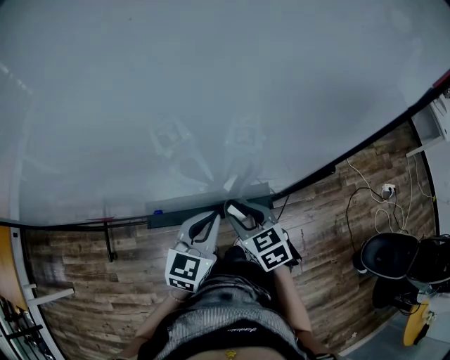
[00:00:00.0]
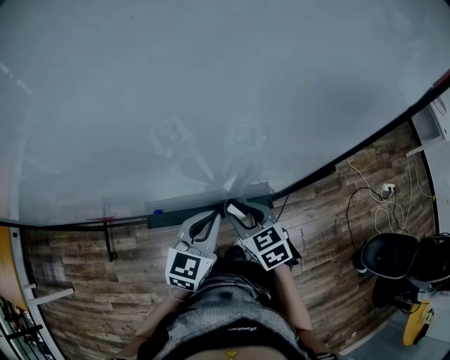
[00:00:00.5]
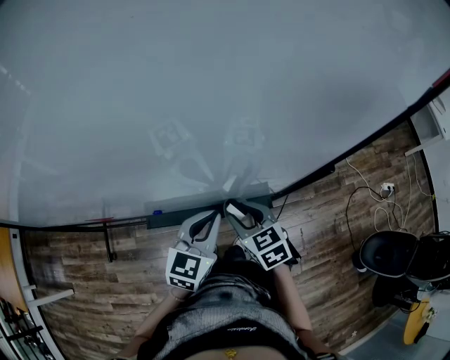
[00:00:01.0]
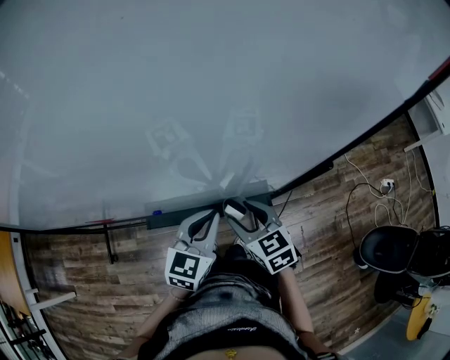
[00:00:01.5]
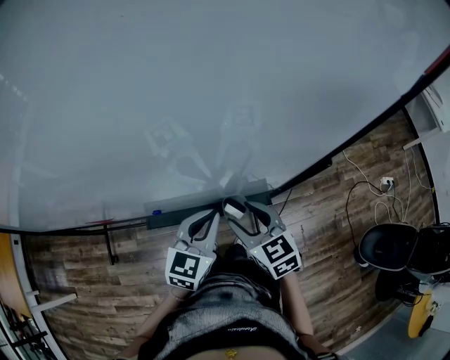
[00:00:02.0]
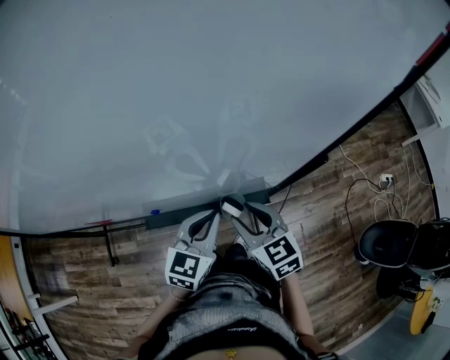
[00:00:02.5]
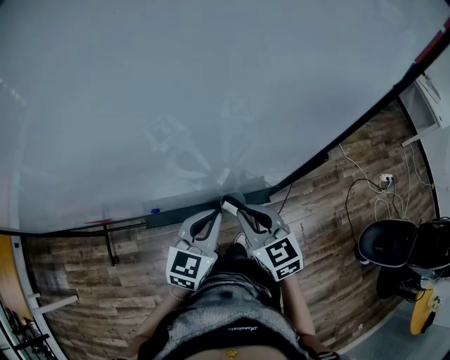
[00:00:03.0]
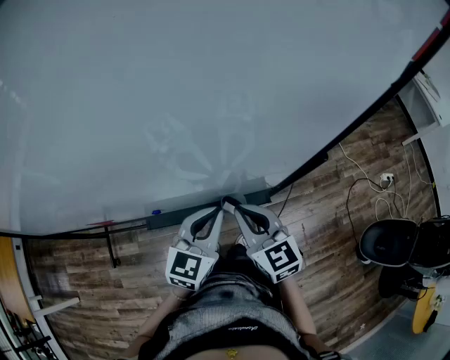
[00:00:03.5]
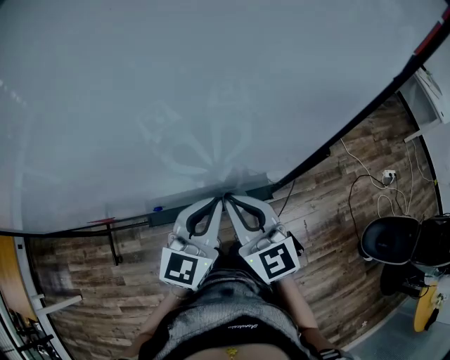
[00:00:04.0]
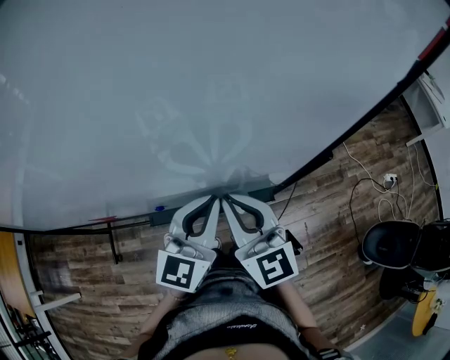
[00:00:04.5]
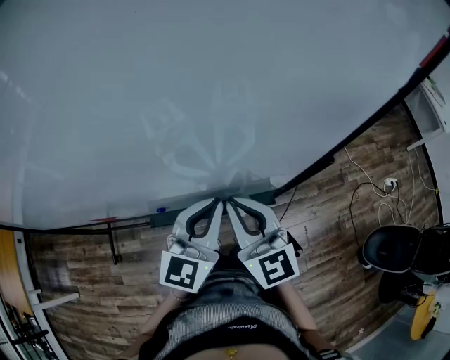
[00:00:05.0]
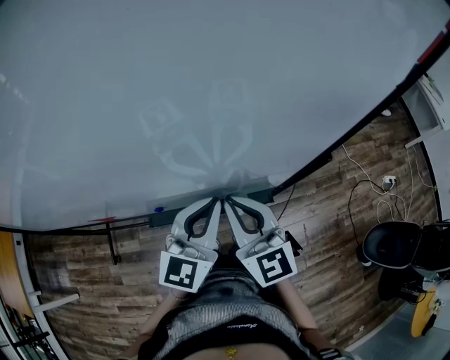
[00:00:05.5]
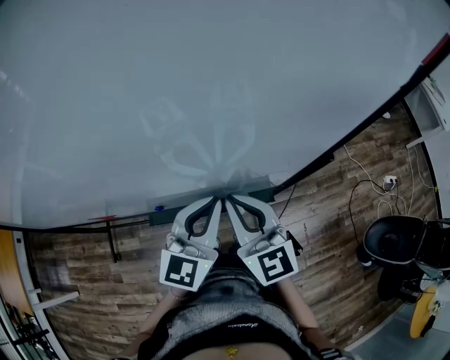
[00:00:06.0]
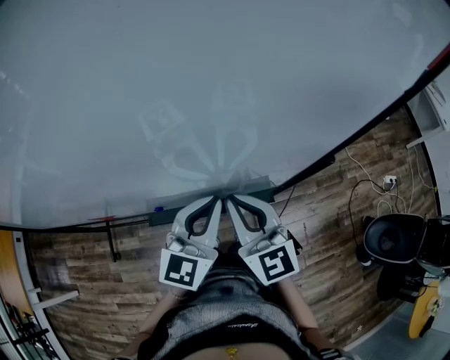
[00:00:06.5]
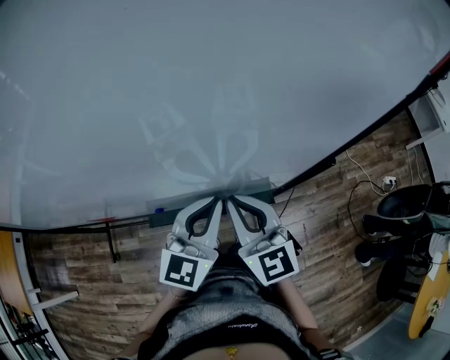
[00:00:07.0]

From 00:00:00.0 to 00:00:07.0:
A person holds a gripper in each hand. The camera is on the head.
From 00:00:00.0 to 00:00:02.0: The grippers stay close to where they were, moving slightly.
From 00:00:02.0 to 00:00:03.5: The right gripper closes up.
From 00:00:03.5 to 00:00:05.0: Both grippers travel together upward, roughly 5 cm.
From 00:00:05.0 to 00:00:07.0: The grippers move only a little.

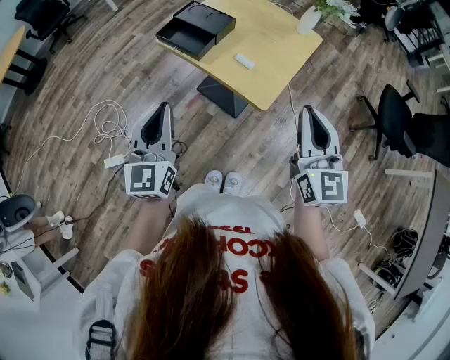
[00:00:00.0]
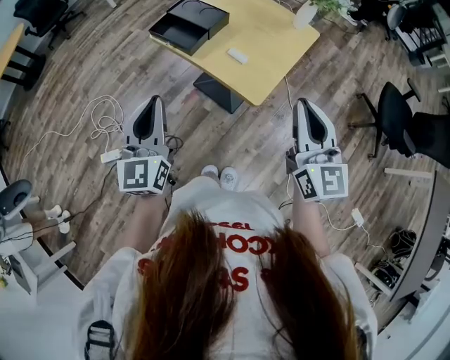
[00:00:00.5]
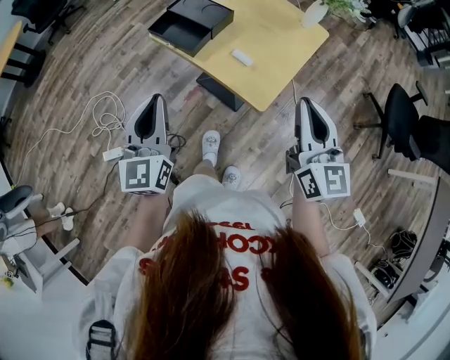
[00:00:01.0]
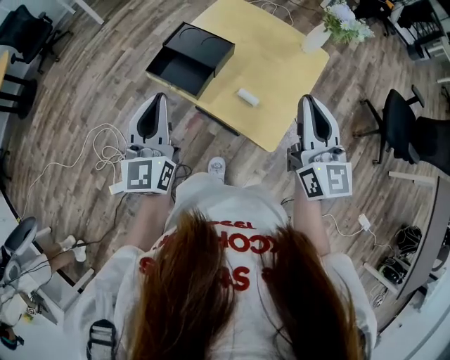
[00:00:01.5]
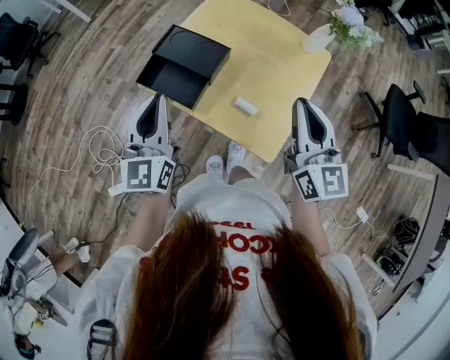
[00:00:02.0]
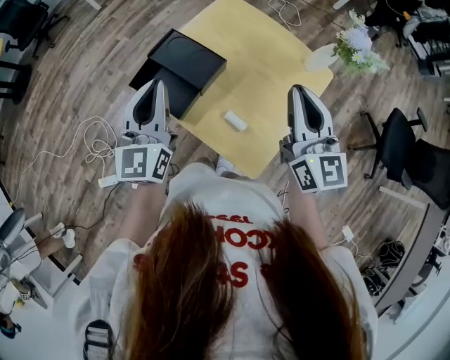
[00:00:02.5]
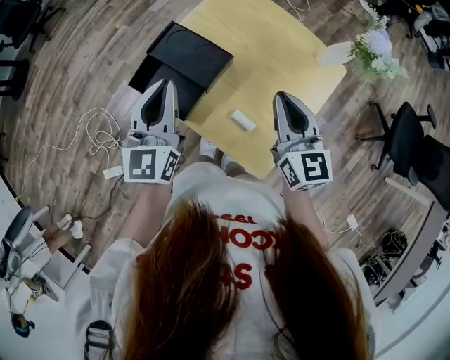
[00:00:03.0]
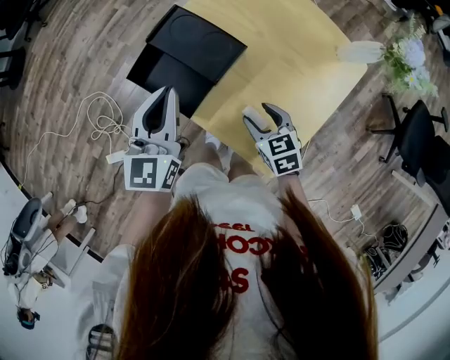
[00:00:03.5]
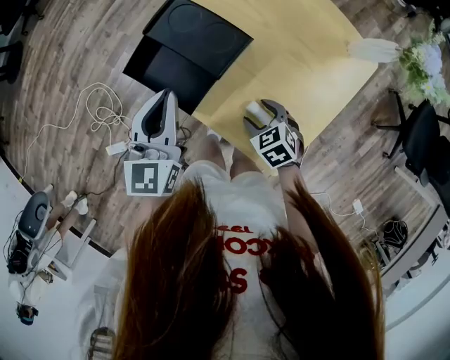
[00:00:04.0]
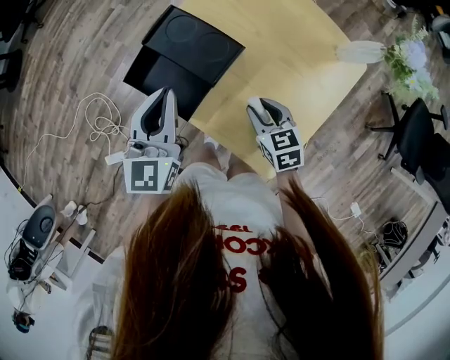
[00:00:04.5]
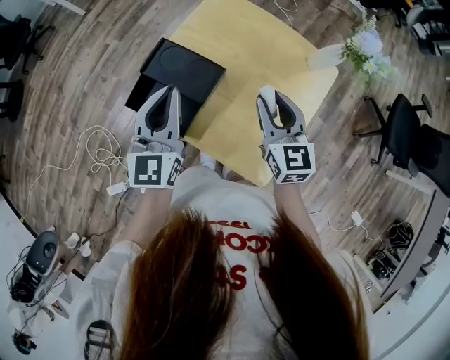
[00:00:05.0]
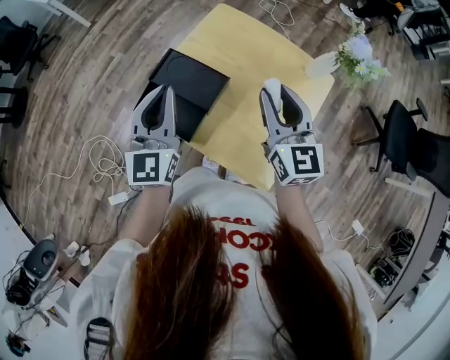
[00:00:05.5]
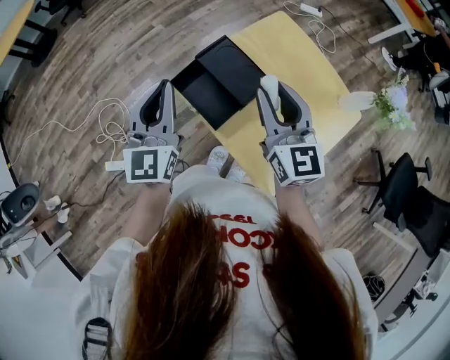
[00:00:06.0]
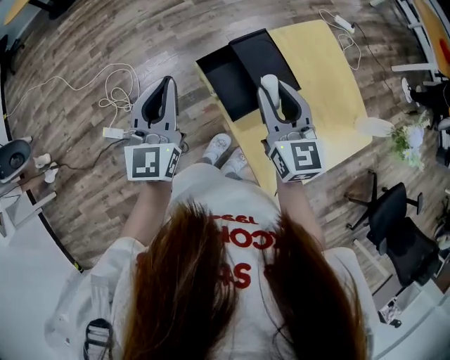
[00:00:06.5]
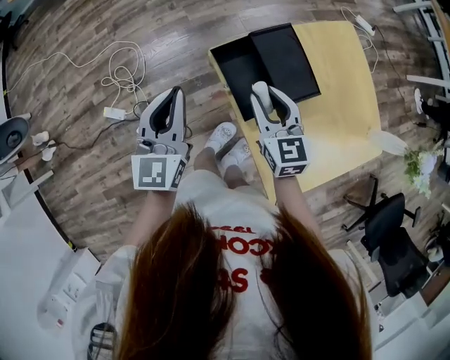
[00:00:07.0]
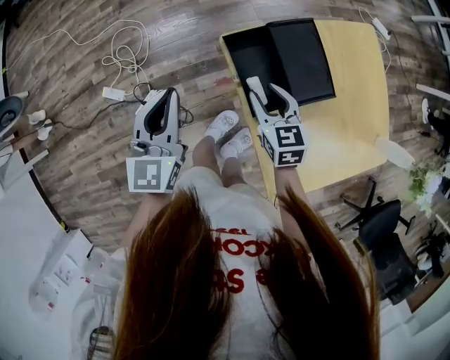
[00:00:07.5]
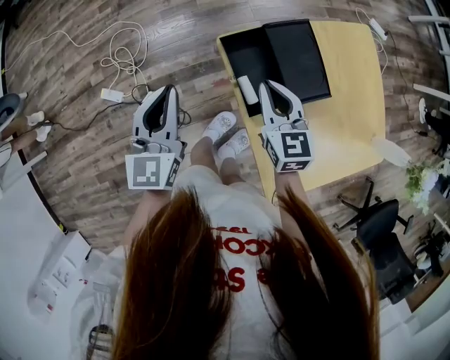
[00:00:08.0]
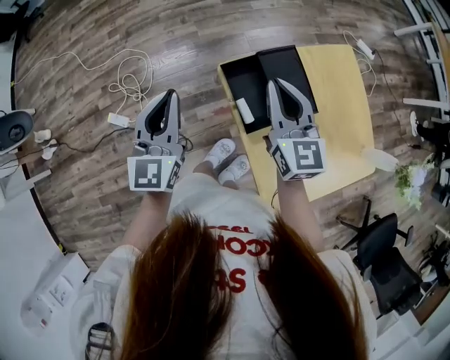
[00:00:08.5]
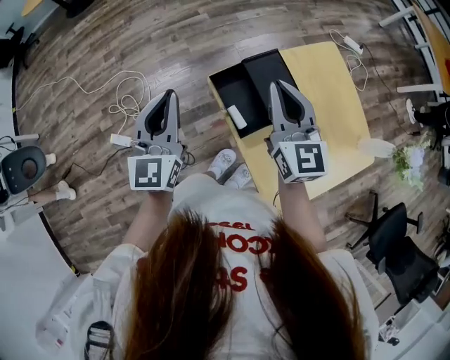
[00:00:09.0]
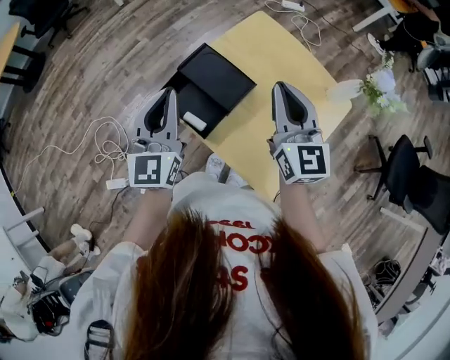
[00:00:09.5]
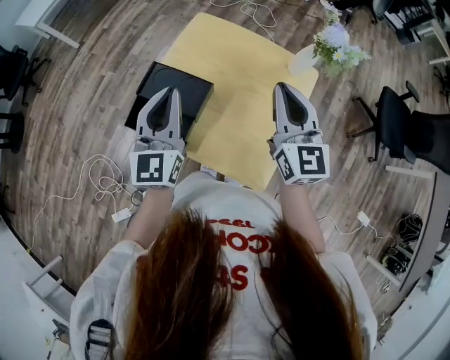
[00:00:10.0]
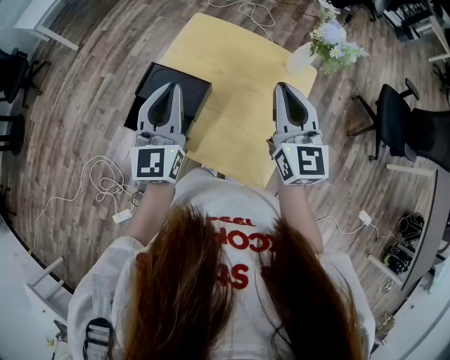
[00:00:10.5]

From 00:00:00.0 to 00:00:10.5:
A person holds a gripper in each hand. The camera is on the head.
From 00:00:00.0 to 00:00:02.0: Both grippers travel together forward, roughly 25 cm.
From 00:00:02.0 to 00:00:04.0: The right gripper moves downward, approximately 35 cm, tilts its fingers about 60 degrees downward, and opens, while the left gripper moves downward and forward, approximately 10 cm.
From 00:00:04.0 to 00:00:06.5: The right gripper heads upward, covering approximately 25 cm, points its fingers about 50 degrees further upward, and closes up. Meanwhile the left gripper moves some 15 cm, and changes its angle by some 30 degrees.
From 00:00:06.5 to 00:00:08.5: The left gripper moves to the left, roughly 5 cm, and reaches about 10 cm downward, then returns, while the right gripper is displaced forward by roughly 5 cm, moves roughly 20 cm downward and comes back, and closes its fingers.
From 00:00:08.5 to 00:00:10.5: The left gripper shifts by approximately 30 cm, and swivels some 40 degrees; the right gripper ends up approximately 35 cm from where it was, and rotates roughly 50 degrees.

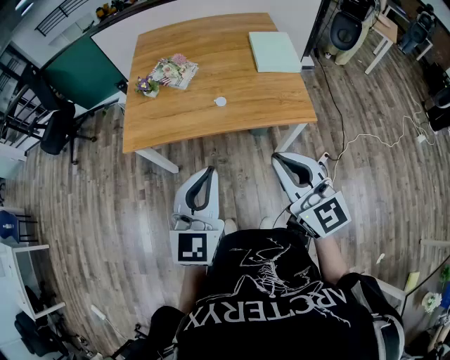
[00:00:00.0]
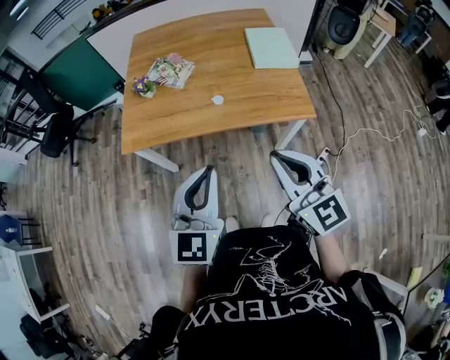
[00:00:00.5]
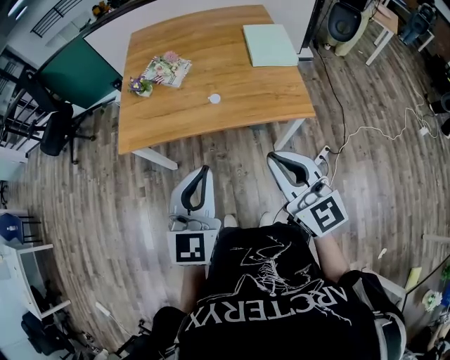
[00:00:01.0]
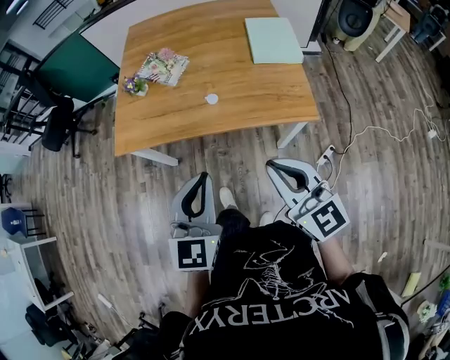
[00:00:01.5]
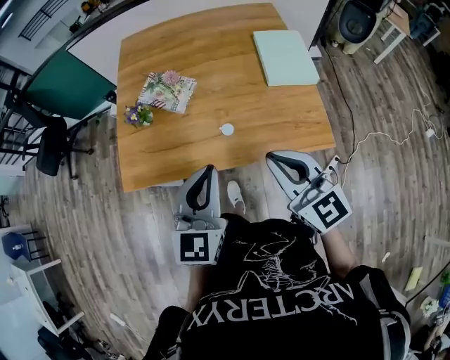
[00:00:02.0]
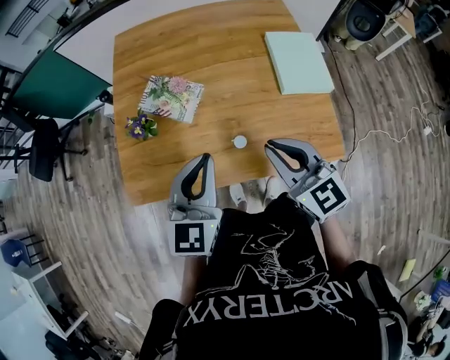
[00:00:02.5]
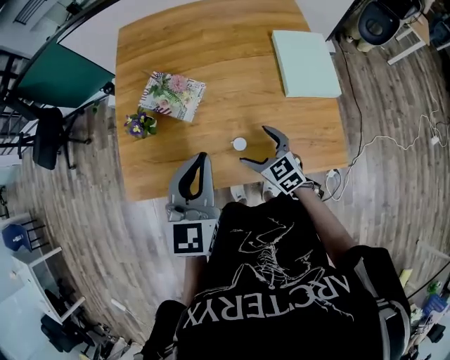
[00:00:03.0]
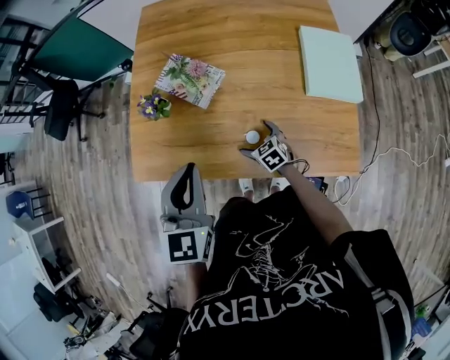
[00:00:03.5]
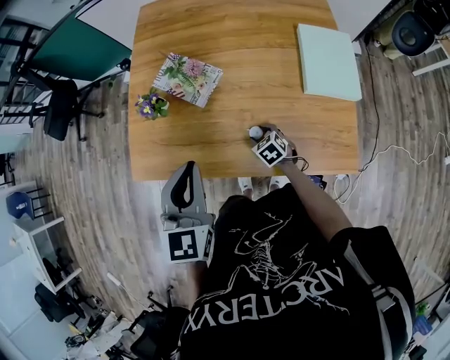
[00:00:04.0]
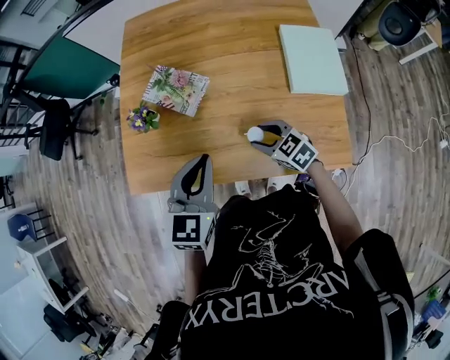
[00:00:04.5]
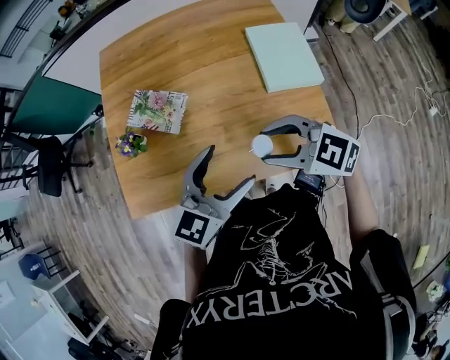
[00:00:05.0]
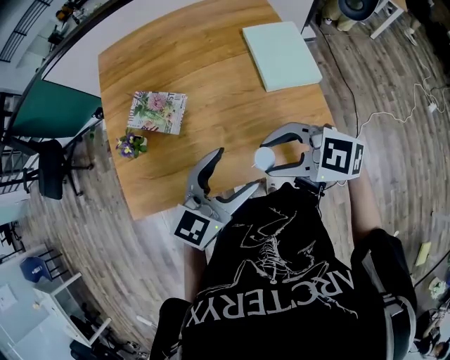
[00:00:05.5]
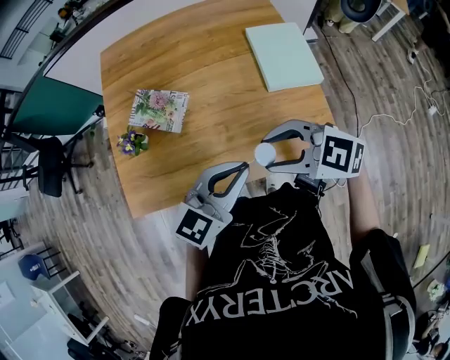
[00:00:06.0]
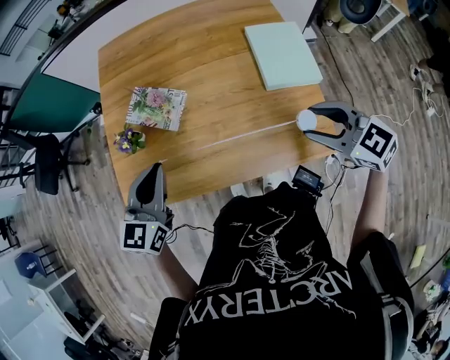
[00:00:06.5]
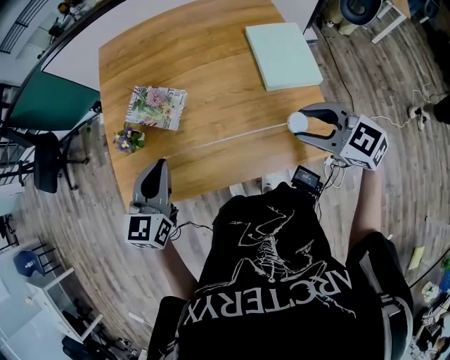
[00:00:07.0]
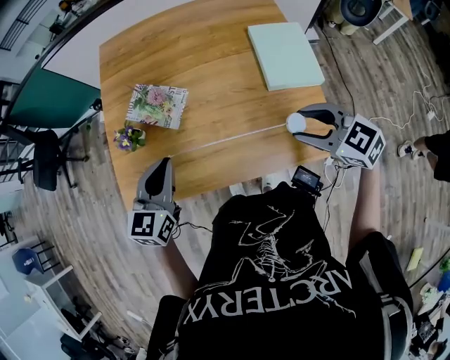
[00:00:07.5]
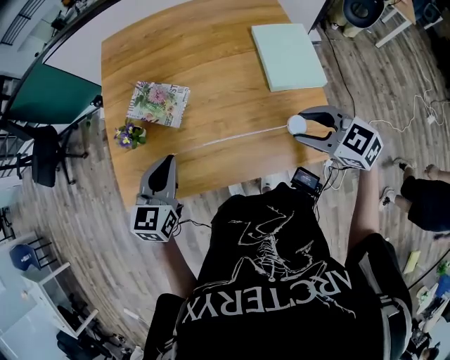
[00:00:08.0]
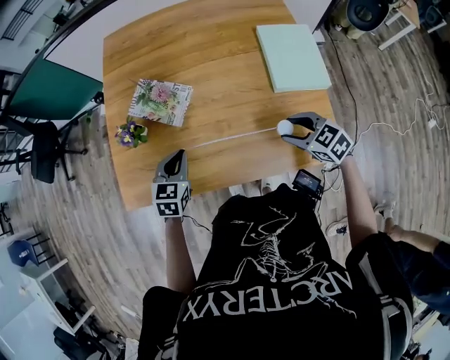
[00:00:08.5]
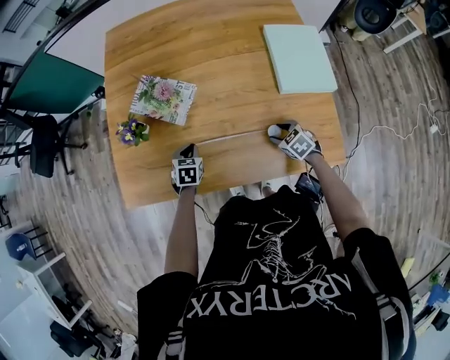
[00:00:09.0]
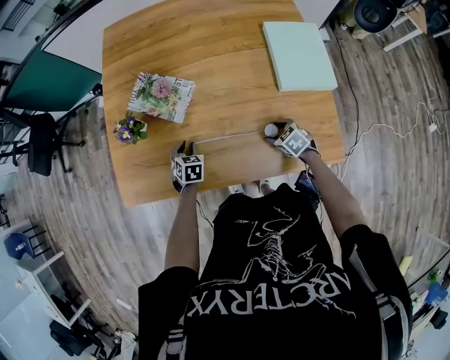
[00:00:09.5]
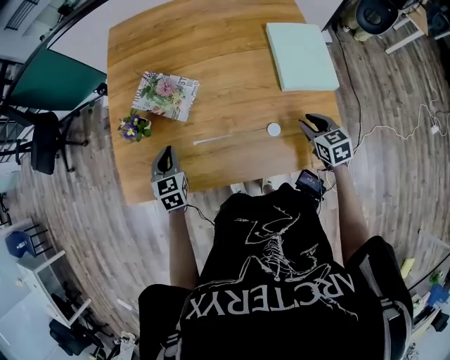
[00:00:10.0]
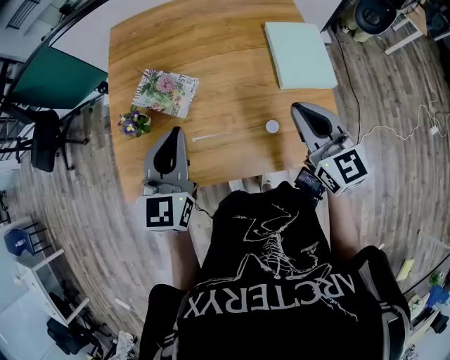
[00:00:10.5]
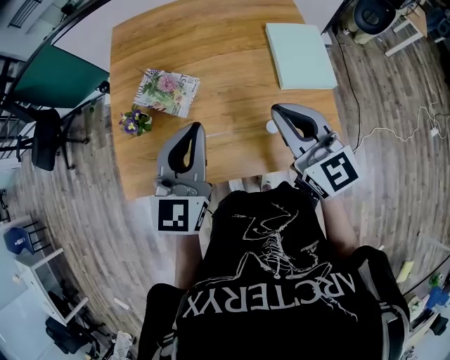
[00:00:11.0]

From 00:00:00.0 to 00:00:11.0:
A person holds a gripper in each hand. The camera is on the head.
From 00:00:00.0 to 00:00:02.0: The two grippers go roughly 25 cm forward.
From 00:00:02.0 to 00:00:03.5: The left gripper goes roughly 15 cm forward and to the left. Meanwhile the right gripper heads downward and forward, covering about 40 cm, points its fingers roughly 40 degrees further downward, and opens up.
From 00:00:03.5 to 00:00:05.5: The right gripper shifts about 35 cm upward, turns by approximately 40 degrees, and closes its fingers; the left gripper changes place by some 15 cm, turns by some 50 degrees, and opens.
From 00:00:05.5 to 00:00:07.5: The left gripper shifts by approximately 20 cm, turns by about 30 degrees, and closes. Meanwhile the right gripper moves some 10 cm, and swivels approximately 20 degrees.
From 00:00:07.5 to 00:00:09.0: The grippers both shift downward by approximately 30 cm. The left gripper tilts its fingers approximately 40 degrees downward; the right gripper turns by some 30 degrees.
From 00:00:09.0 to 00:00:11.0: Both grippers move upward, some 40 cm. The right gripper tips its fingers upward by approximately 50 degrees, and closes up. The left gripper tips its fingers upward by some 50 degrees.
